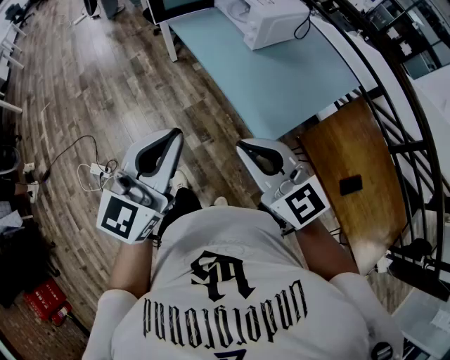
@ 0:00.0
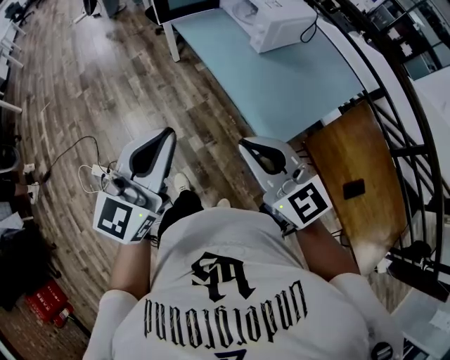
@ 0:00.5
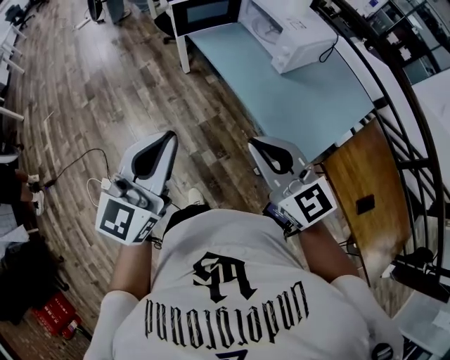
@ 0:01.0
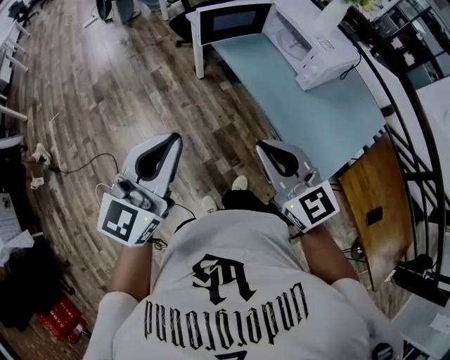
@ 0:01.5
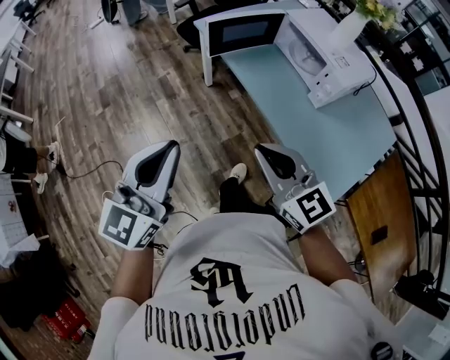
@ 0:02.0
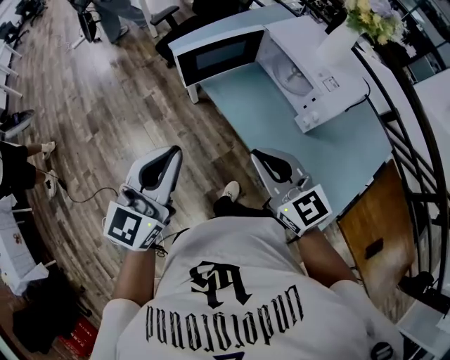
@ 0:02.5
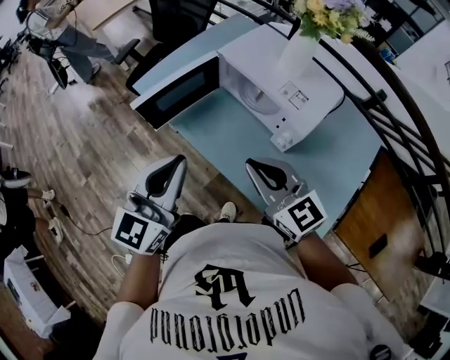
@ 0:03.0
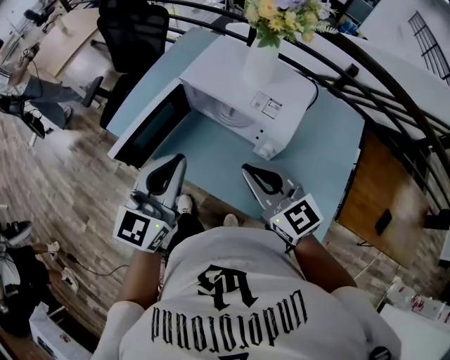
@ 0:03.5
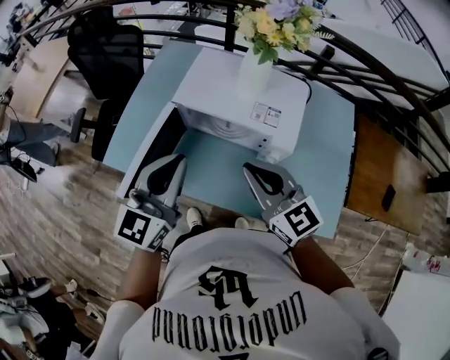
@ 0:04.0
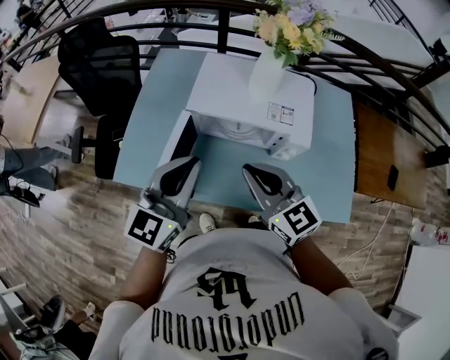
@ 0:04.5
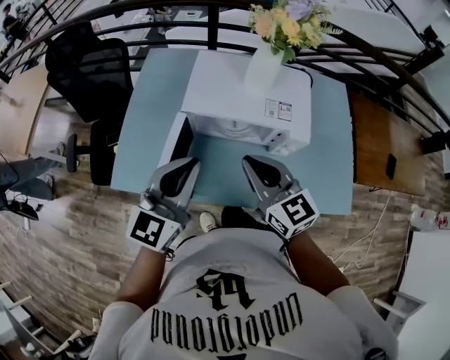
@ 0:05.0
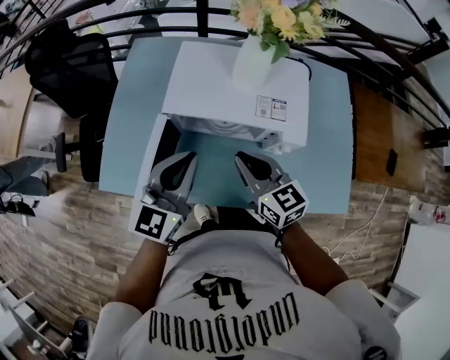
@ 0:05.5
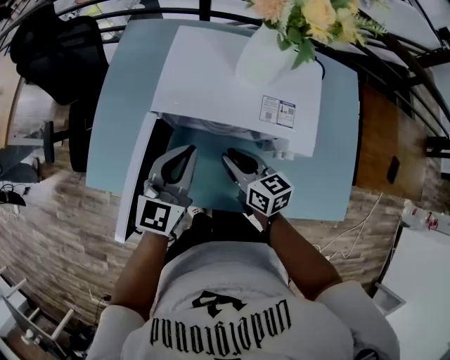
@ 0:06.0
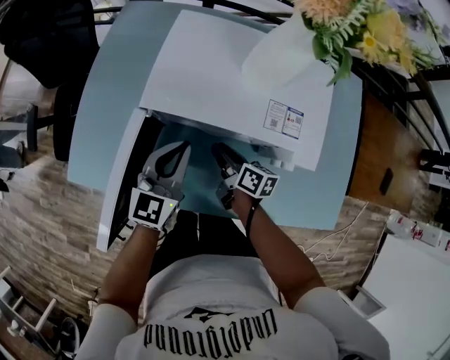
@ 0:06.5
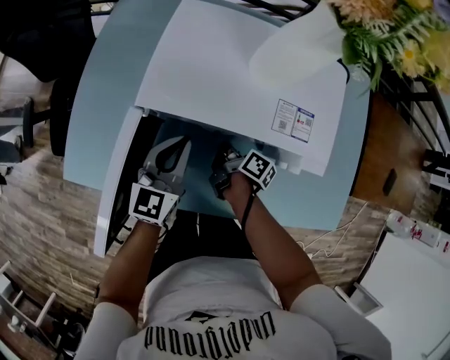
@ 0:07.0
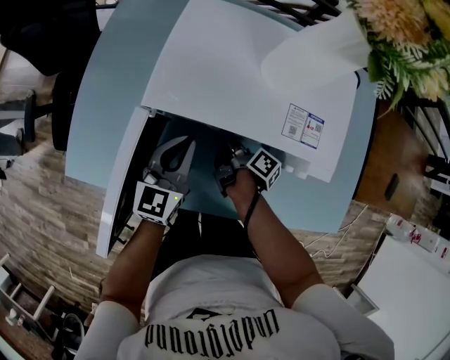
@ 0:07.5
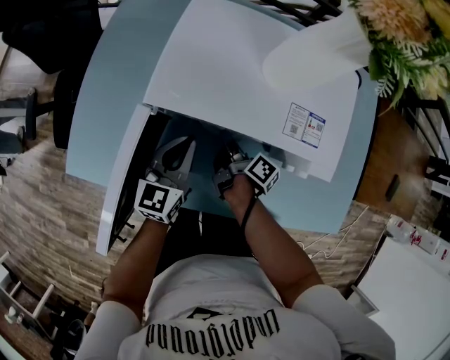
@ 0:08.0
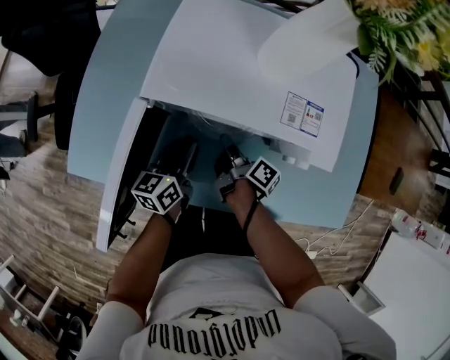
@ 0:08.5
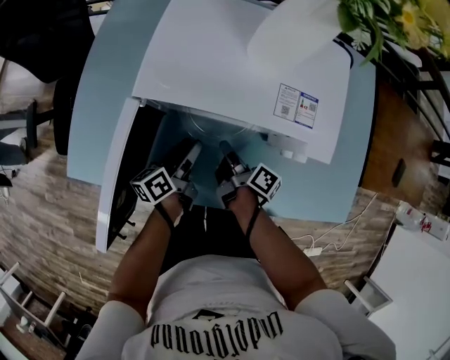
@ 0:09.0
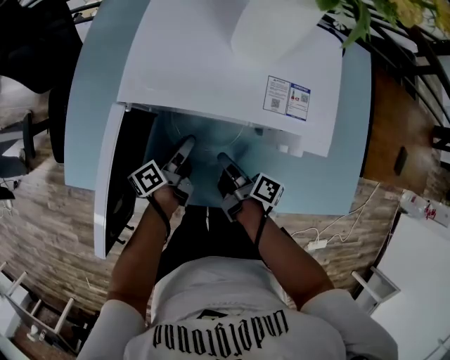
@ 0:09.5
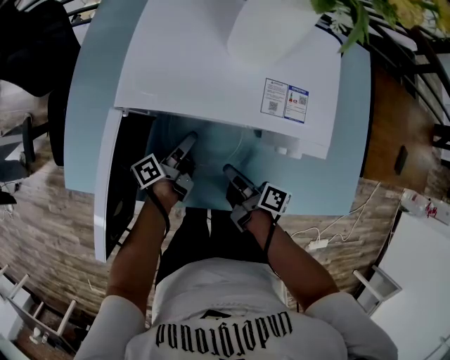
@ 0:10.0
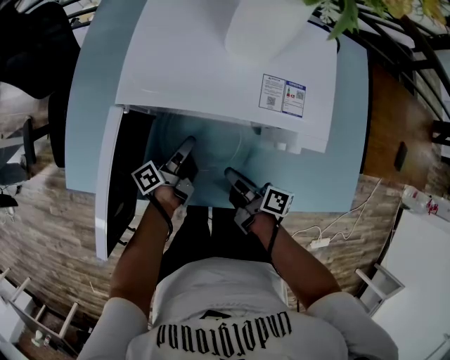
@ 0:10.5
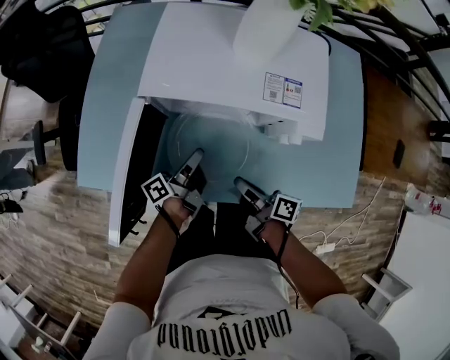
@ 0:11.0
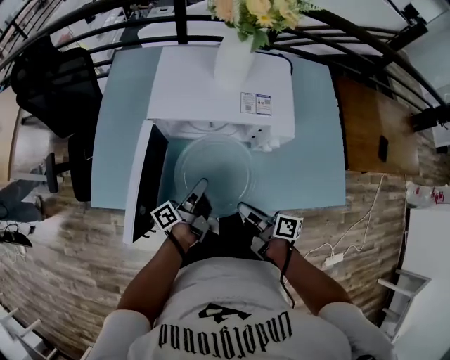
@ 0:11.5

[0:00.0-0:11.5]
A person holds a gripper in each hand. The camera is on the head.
0:00.0 to 0:02.0: Both grippers travel together forward and to the left, approximately 35 cm.
0:02.0 to 0:04.0: The left gripper moves some 50 cm, and changes its angle by some 40 degrees. Meanwhile the right gripper changes place by some 40 cm, and swivels approximately 40 degrees.
0:04.0 to 0:06.0: Both grippers travel together downward and forward, roughly 20 cm. The right gripper changes its angle by some 40 degrees.
0:06.0 to 0:07.5: The right gripper travels downward and forward by some 20 cm, and rotates around the line of its fingers by roughly 70 degrees, clockwise from behind, while the left gripper travels downward by approximately 10 cm.
0:07.5 to 0:09.5: The right gripper travels backward by approximately 10 cm, and closes its fingers; the left gripper shifts some 10 cm downward, twists approximately 60 degrees counterclockwise, seen from behind, and opens.
0:09.5 to 0:11.5: The two grippers go about 15 cm backward and upward. The left gripper closes.

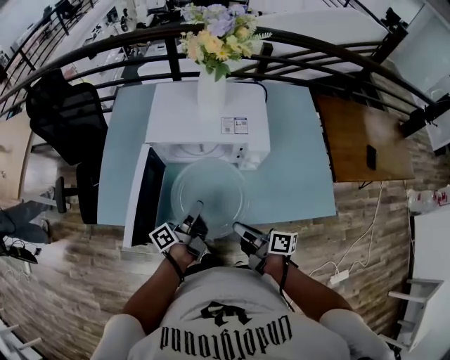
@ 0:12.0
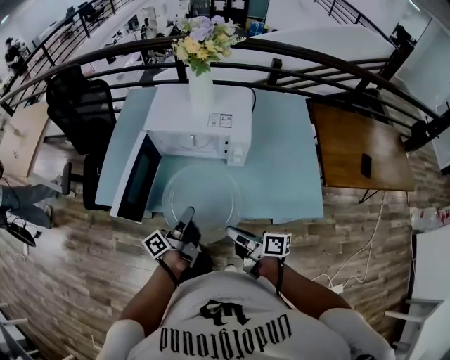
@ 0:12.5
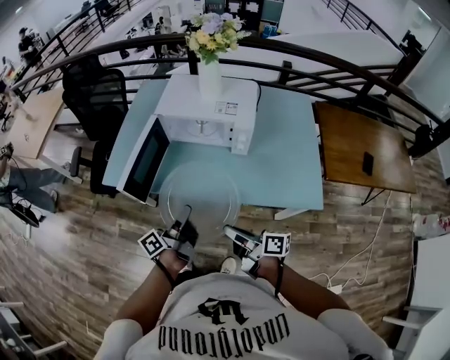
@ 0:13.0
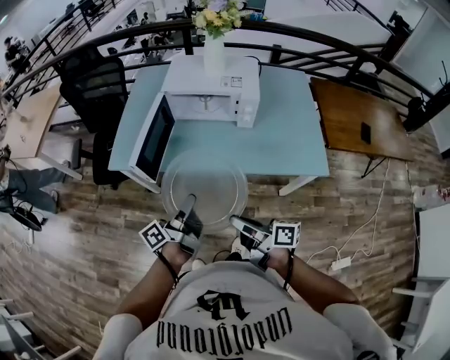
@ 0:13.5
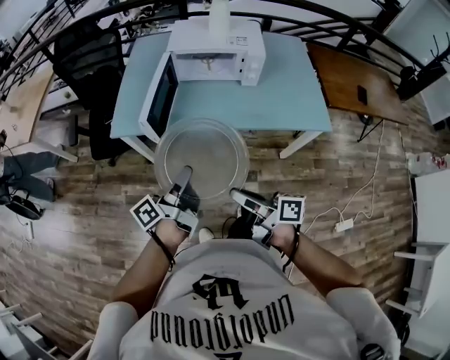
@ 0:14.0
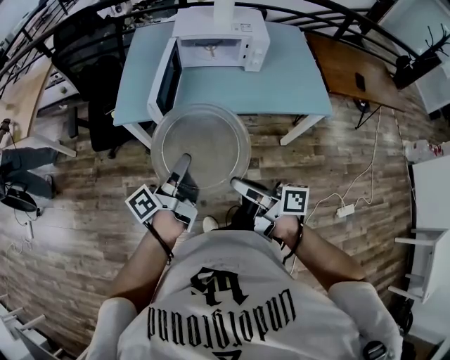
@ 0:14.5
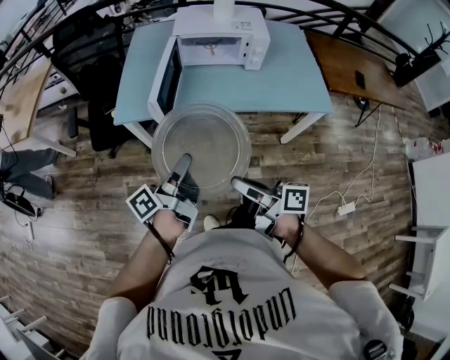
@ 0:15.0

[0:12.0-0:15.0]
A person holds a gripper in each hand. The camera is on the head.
0:12.0 to 0:13.5: Both grippers travel together backward, some 25 cm.
0:13.5 to 0:15.0: The grippers both shift to the left and backward by some 15 cm.

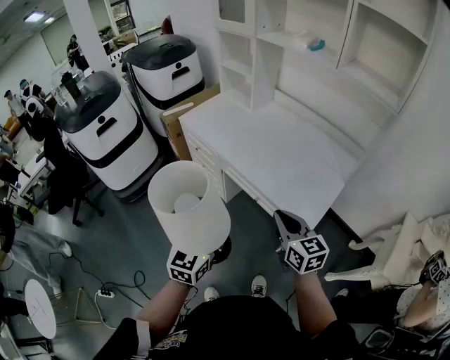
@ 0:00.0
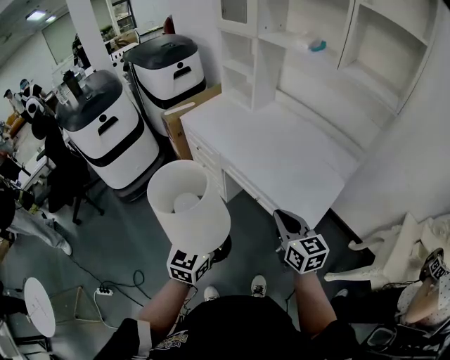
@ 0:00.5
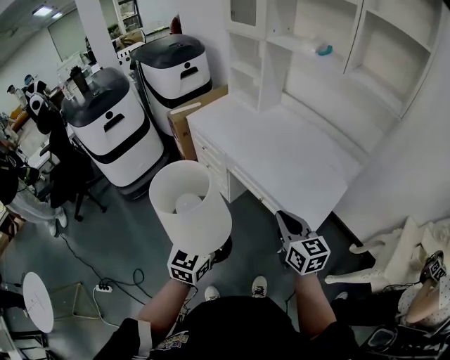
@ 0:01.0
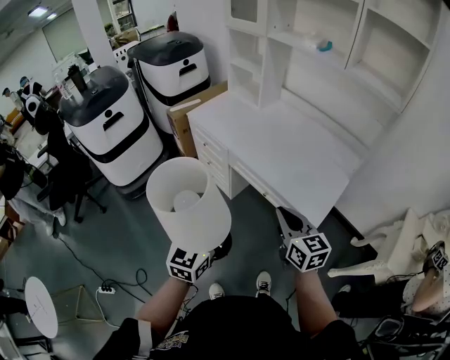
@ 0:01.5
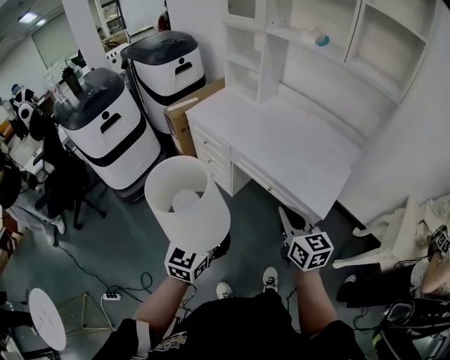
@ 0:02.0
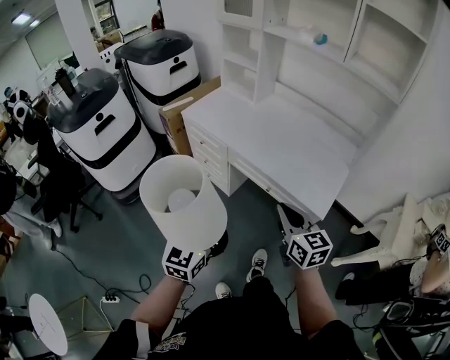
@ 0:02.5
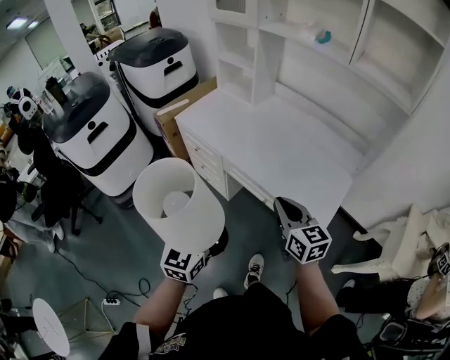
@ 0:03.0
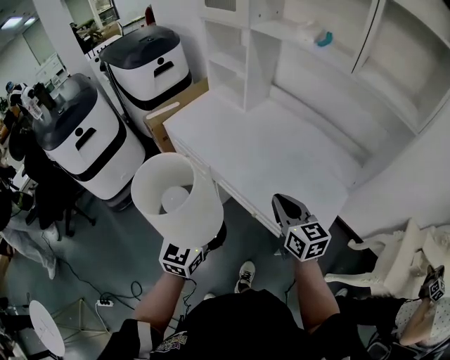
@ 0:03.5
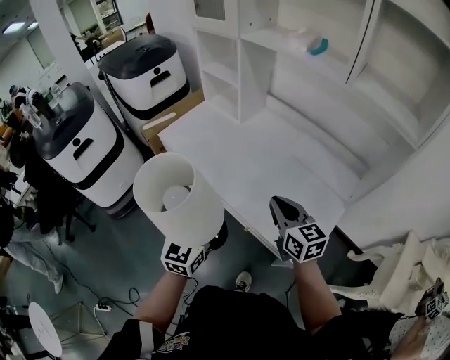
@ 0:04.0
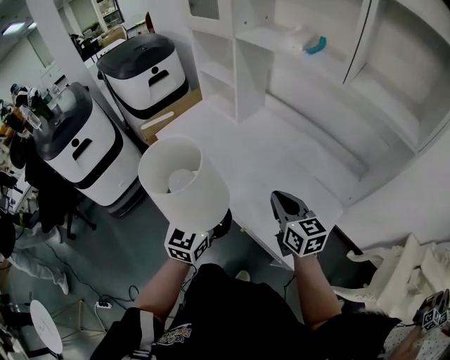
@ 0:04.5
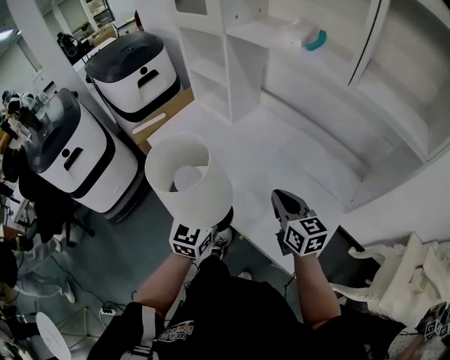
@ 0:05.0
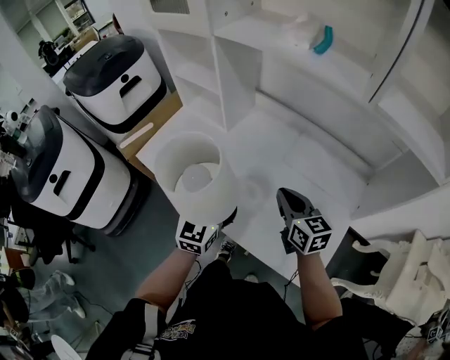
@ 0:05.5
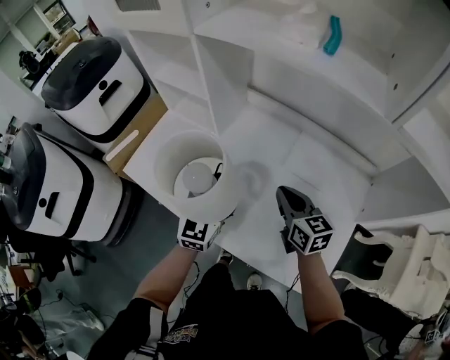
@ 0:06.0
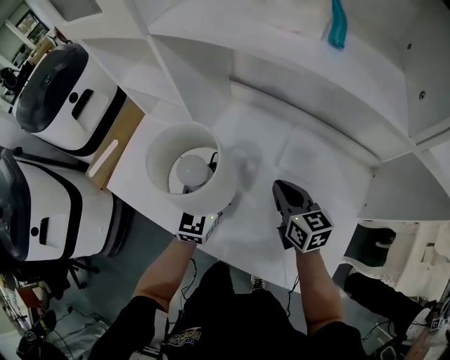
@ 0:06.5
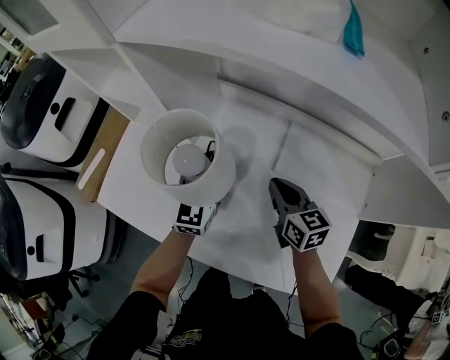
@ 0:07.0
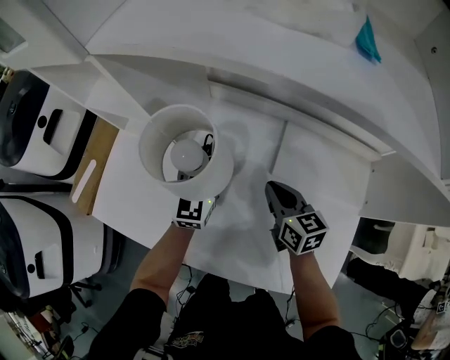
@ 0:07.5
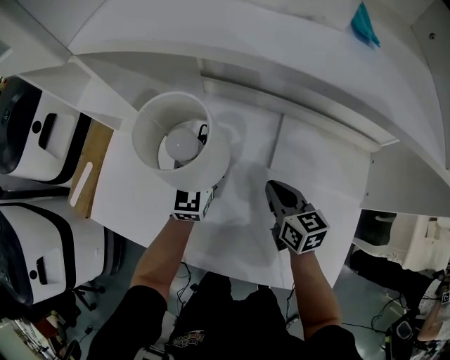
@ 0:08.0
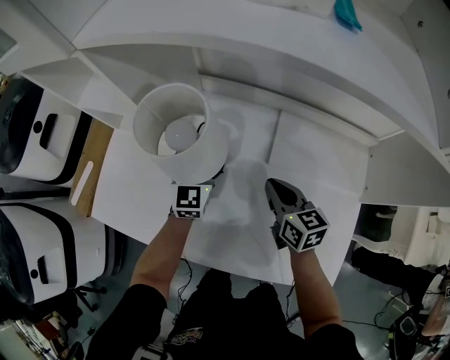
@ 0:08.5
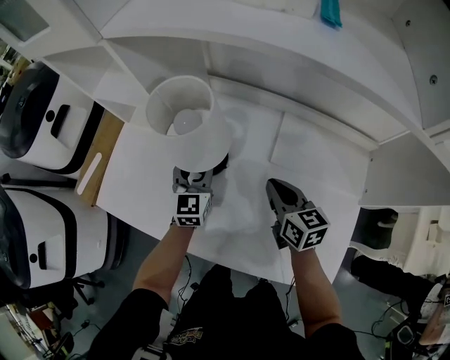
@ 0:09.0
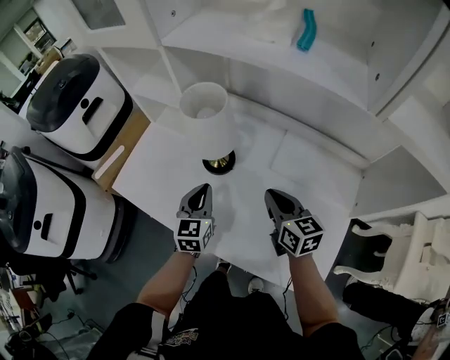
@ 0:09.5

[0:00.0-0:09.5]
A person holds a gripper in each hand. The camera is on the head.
0:00.0 to 0:02.0: The two grippers go about 10 cm to the left.
0:02.0 to 0:04.0: The grippers both shift forward and to the right by approximately 30 cm.
0:04.0 to 0:05.5: Both grippers move forward, about 20 cm.
0:05.5 to 0:07.5: The right gripper heads forward and downward, covering some 20 cm, while the left gripper heads forward, covering roughly 30 cm.
0:07.5 to 0:09.5: The right gripper travels backward and upward by some 10 cm. Meanwhile the left gripper travels backward by approximately 15 cm, and closes up.

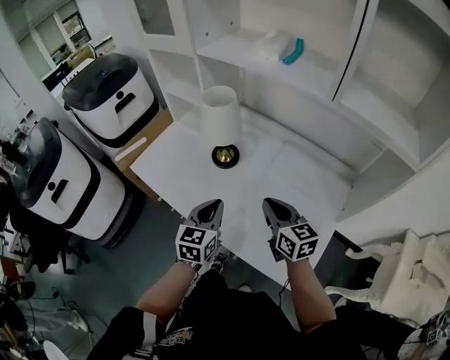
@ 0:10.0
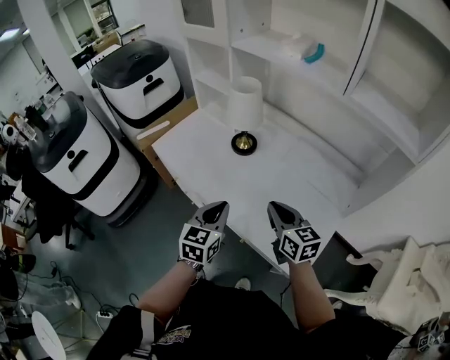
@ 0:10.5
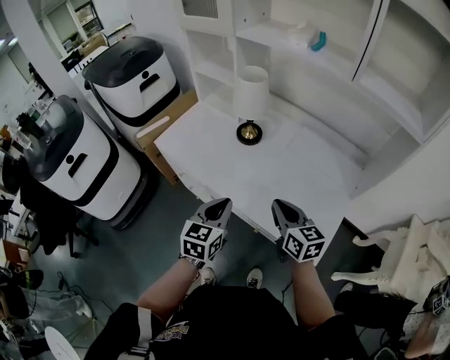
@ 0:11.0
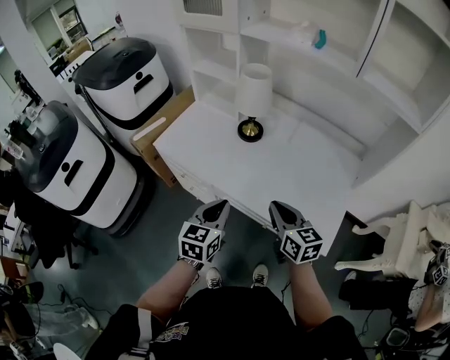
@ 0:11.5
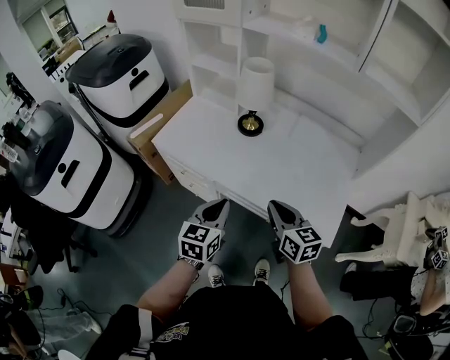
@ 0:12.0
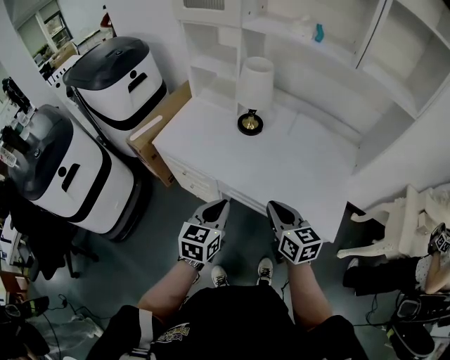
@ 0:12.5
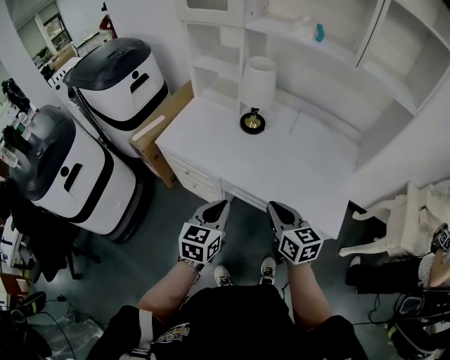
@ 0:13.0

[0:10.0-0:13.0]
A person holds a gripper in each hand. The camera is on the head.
0:10.0 to 0:11.5: The left gripper shifts roughly 20 cm to the left and backward; the right gripper is displaced backward and to the left by approximately 20 cm.
0:11.5 to 0:13.0: Both grippers travel together to the left, some 5 cm.
